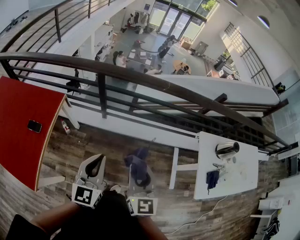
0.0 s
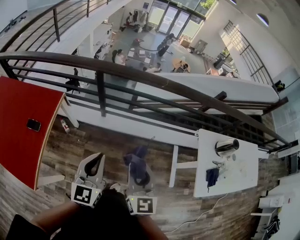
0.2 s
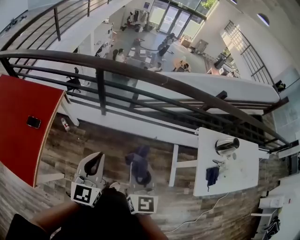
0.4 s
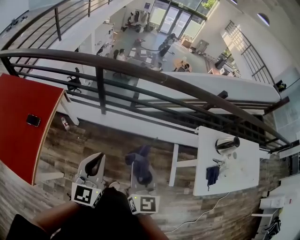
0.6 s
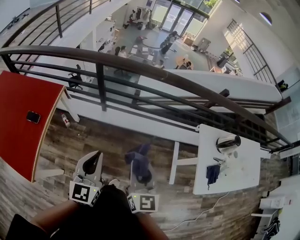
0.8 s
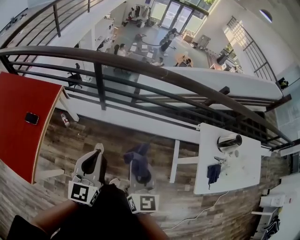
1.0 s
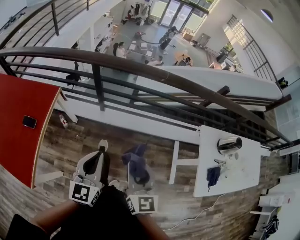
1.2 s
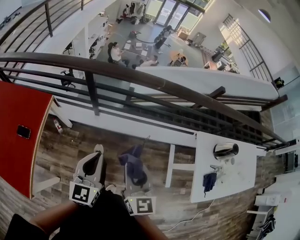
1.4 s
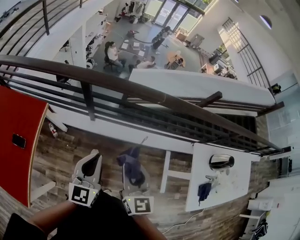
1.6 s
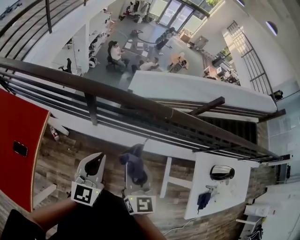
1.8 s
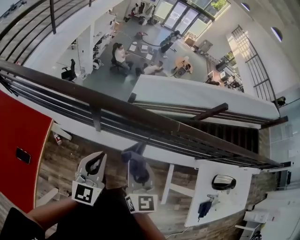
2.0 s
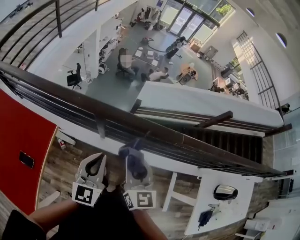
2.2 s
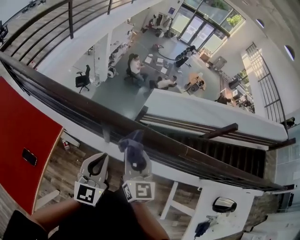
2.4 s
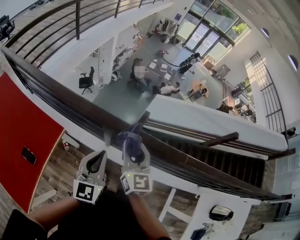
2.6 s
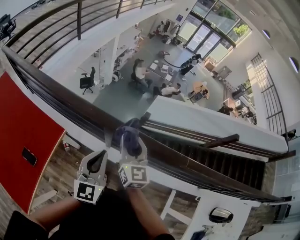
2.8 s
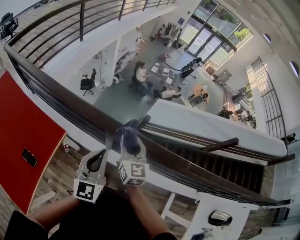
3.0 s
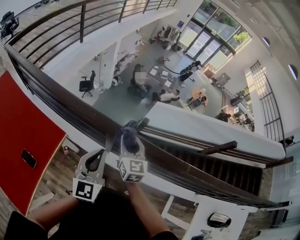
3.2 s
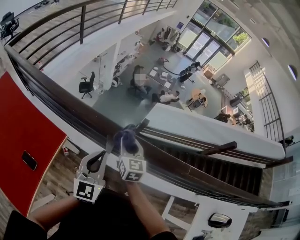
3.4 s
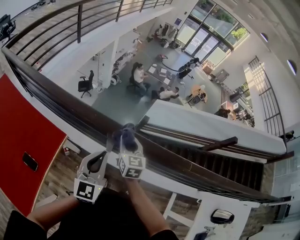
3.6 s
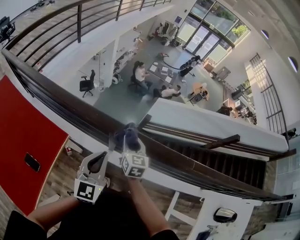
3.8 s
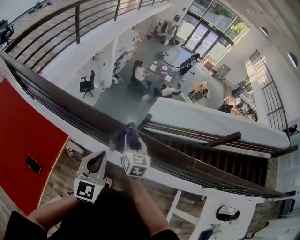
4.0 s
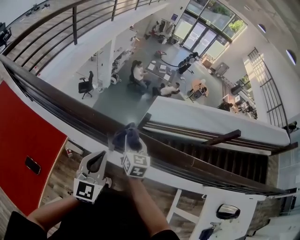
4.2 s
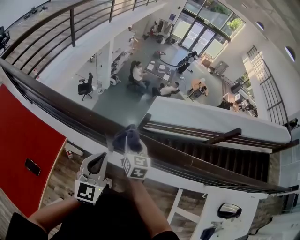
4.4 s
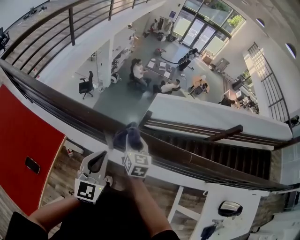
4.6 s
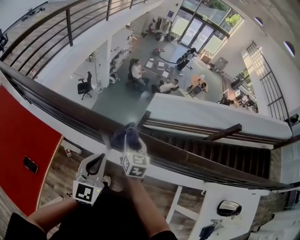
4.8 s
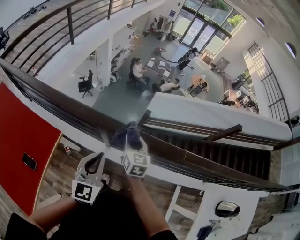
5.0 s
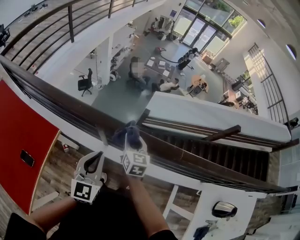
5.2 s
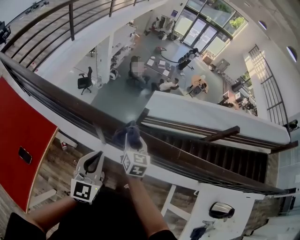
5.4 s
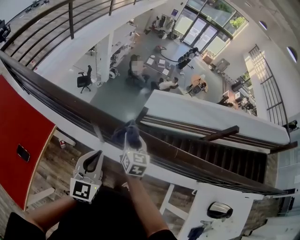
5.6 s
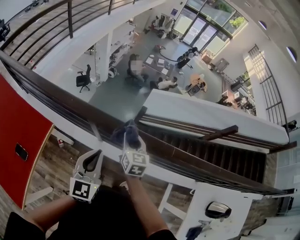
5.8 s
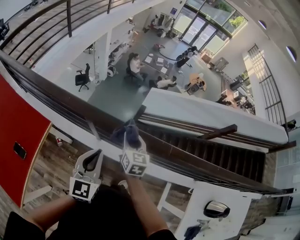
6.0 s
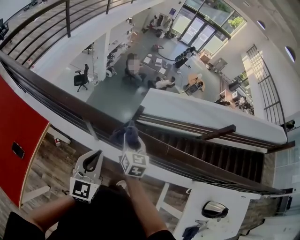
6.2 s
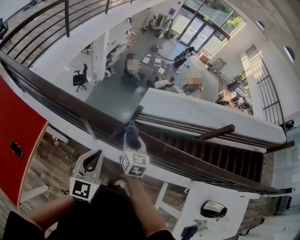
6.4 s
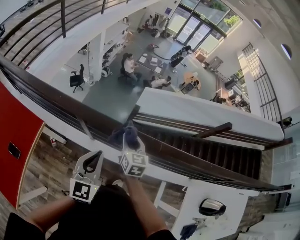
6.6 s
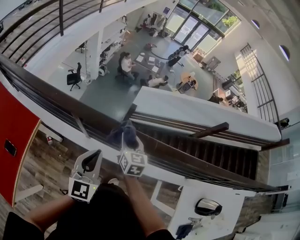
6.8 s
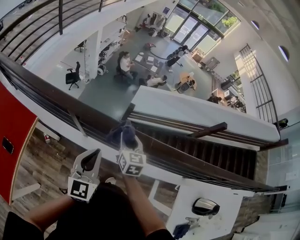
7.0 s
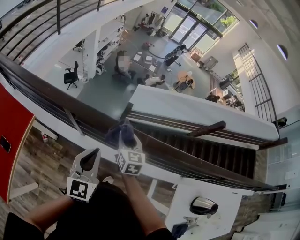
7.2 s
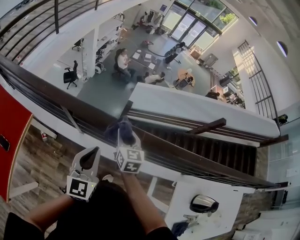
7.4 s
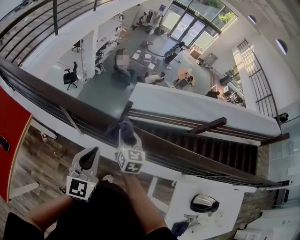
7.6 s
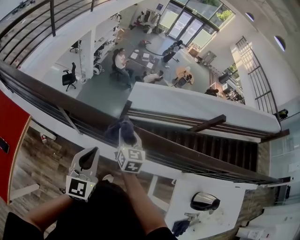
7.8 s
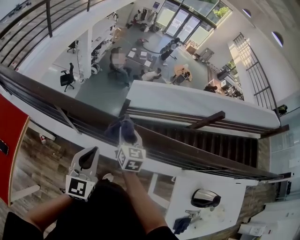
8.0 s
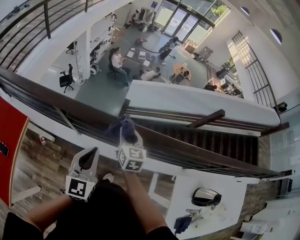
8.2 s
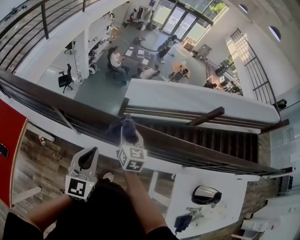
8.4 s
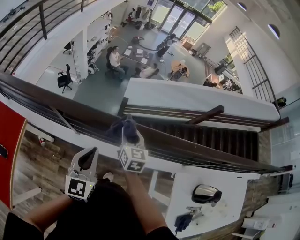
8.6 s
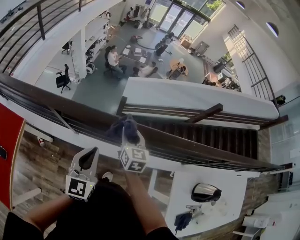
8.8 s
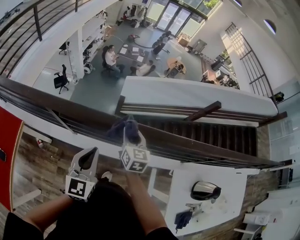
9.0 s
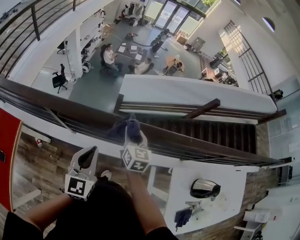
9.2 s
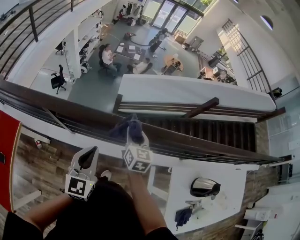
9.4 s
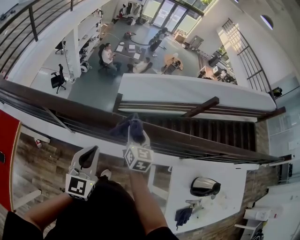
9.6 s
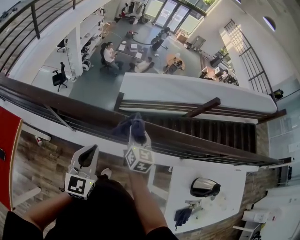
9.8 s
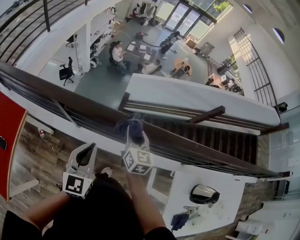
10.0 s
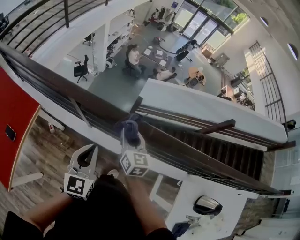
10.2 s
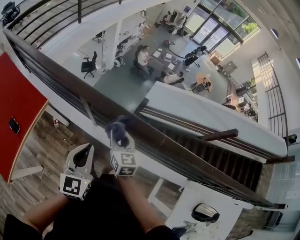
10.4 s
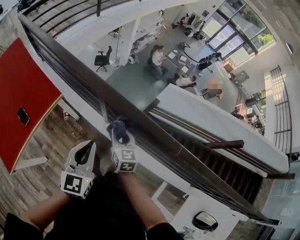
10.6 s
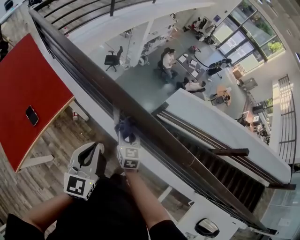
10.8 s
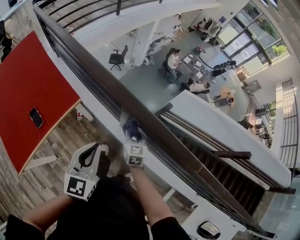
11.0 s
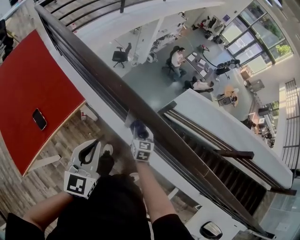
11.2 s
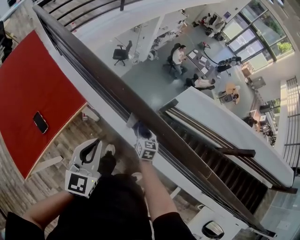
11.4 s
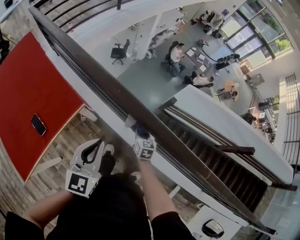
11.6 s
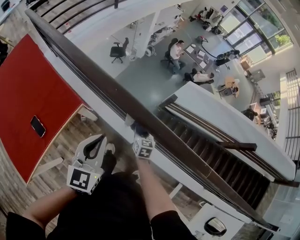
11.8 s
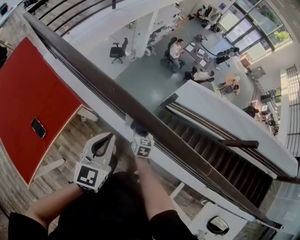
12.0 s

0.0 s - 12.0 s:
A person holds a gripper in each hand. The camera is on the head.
0.0 s - 1.6 s: The two grippers go approximately 10 cm forward.
1.6 s - 3.0 s: The right gripper goes roughly 35 cm forward and to the left; the left gripper shifts some 20 cm forward and to the left.
3.0 s - 4.4 s: The right gripper travels downward by roughly 10 cm.
4.4 s - 6.0 s: Both grippers travel together to the right, about 10 cm.
6.0 s - 7.6 s: Both grippers move to the right, some 10 cm.
7.6 s - 9.0 s: The right gripper is displaced to the right by about 10 cm.
9.0 s - 10.4 s: The left gripper is displaced to the left by about 10 cm. The right gripper travels to the left by roughly 20 cm, and swivels approximately 20 degrees.
10.4 s - 12.0 s: The left gripper goes approximately 15 cm to the left and forward. The right gripper goes some 25 cm downward, forward and to the left.

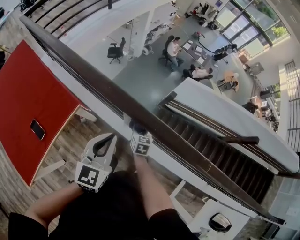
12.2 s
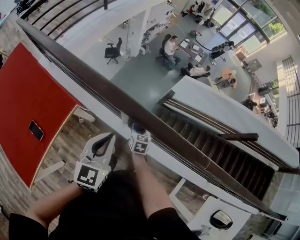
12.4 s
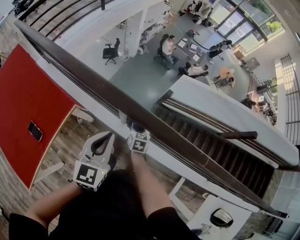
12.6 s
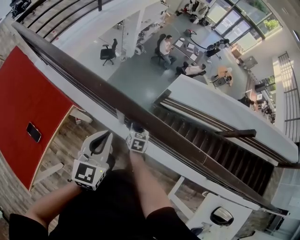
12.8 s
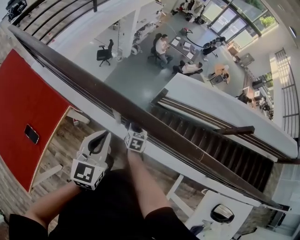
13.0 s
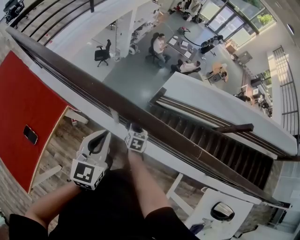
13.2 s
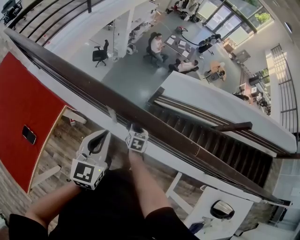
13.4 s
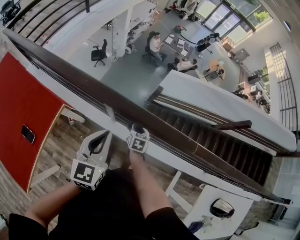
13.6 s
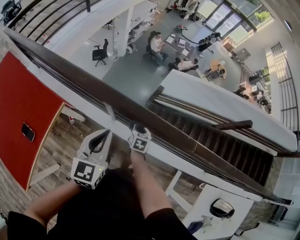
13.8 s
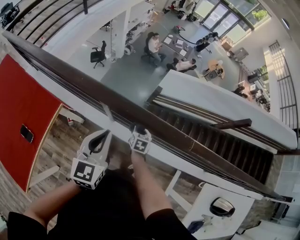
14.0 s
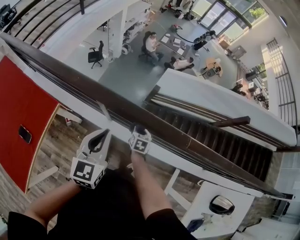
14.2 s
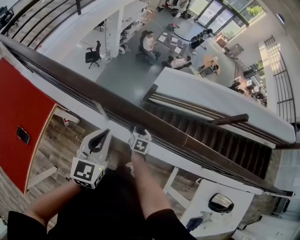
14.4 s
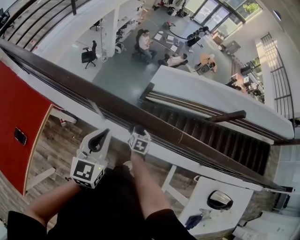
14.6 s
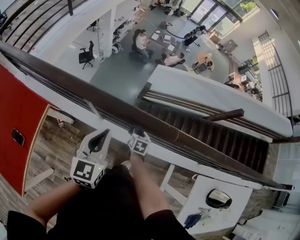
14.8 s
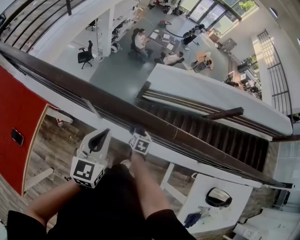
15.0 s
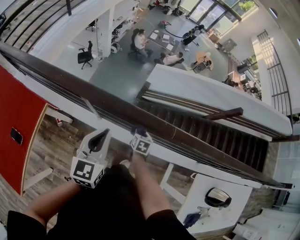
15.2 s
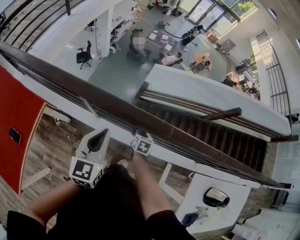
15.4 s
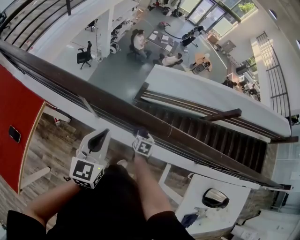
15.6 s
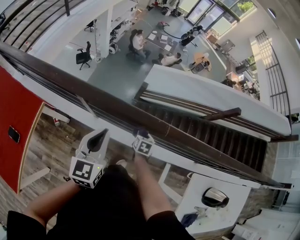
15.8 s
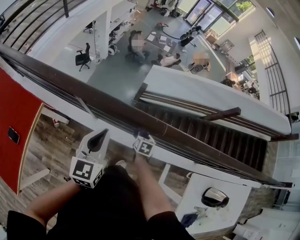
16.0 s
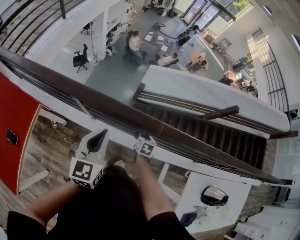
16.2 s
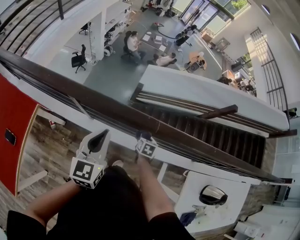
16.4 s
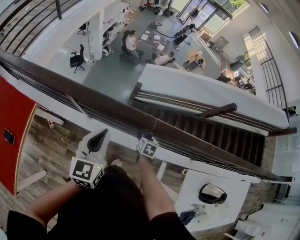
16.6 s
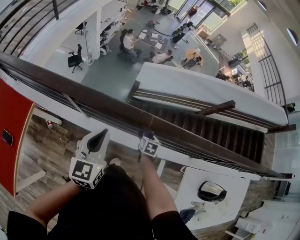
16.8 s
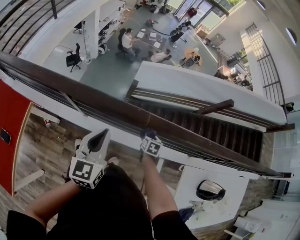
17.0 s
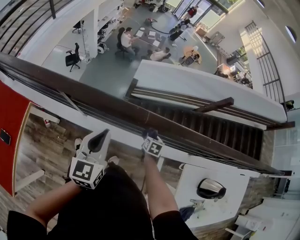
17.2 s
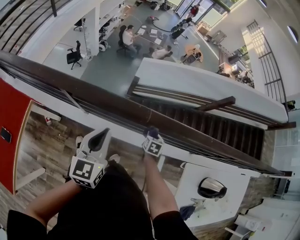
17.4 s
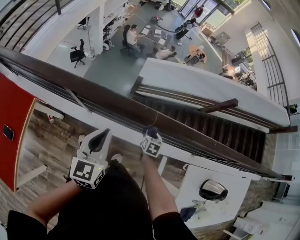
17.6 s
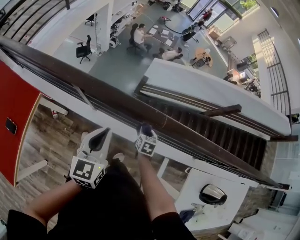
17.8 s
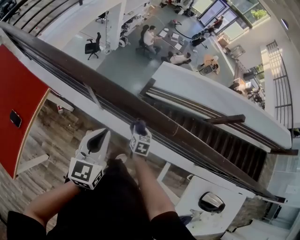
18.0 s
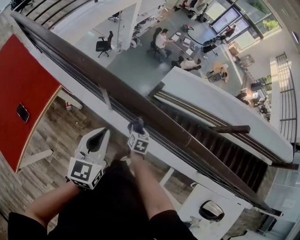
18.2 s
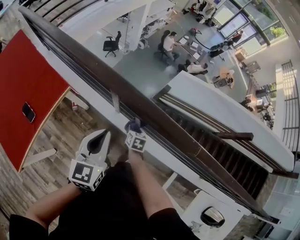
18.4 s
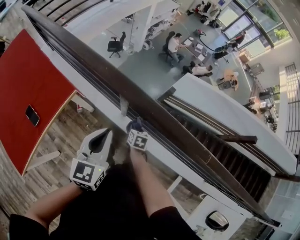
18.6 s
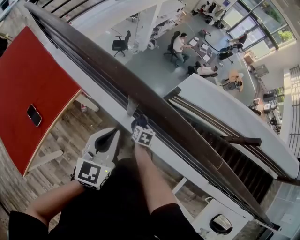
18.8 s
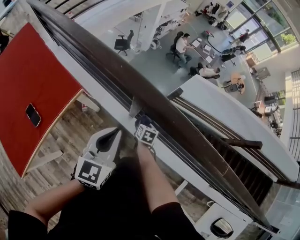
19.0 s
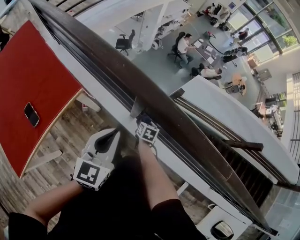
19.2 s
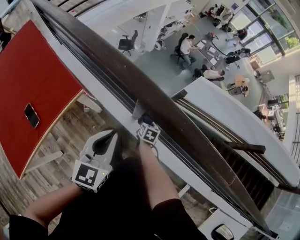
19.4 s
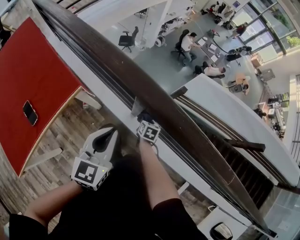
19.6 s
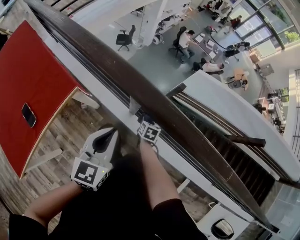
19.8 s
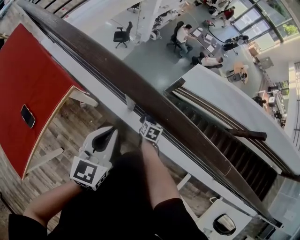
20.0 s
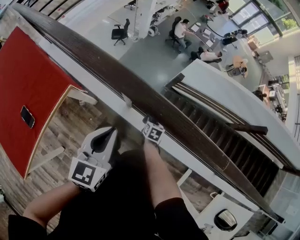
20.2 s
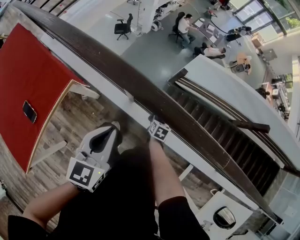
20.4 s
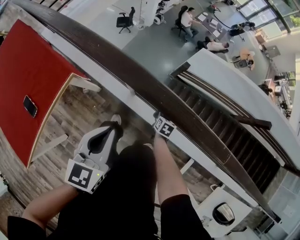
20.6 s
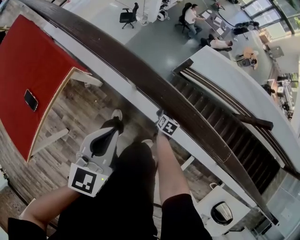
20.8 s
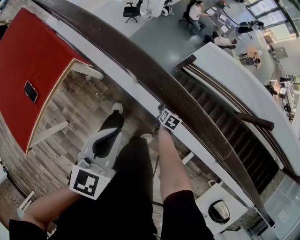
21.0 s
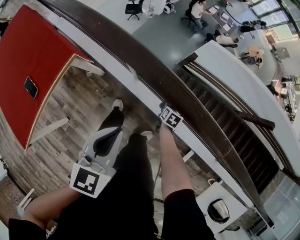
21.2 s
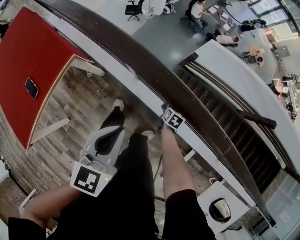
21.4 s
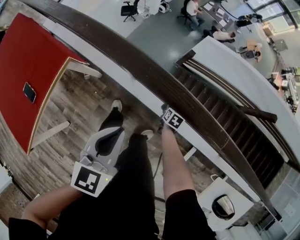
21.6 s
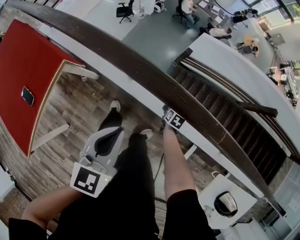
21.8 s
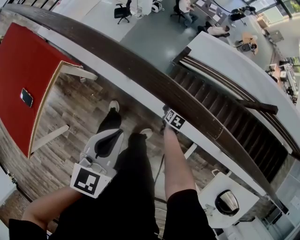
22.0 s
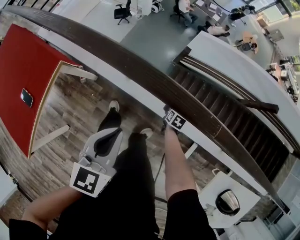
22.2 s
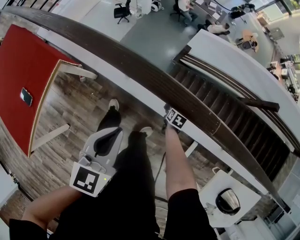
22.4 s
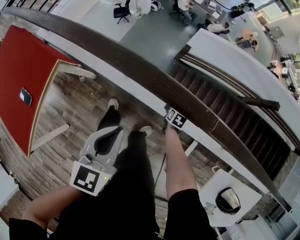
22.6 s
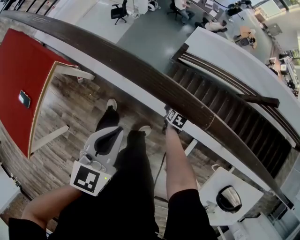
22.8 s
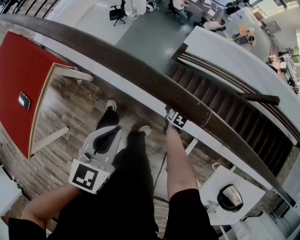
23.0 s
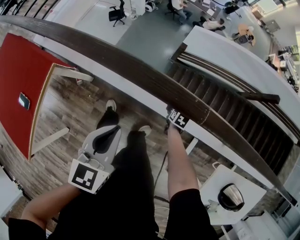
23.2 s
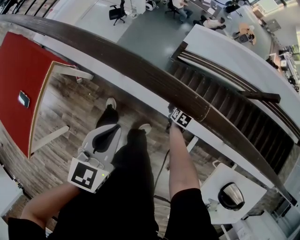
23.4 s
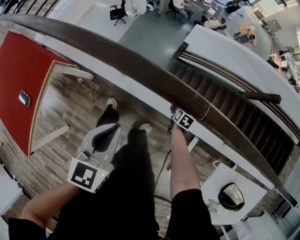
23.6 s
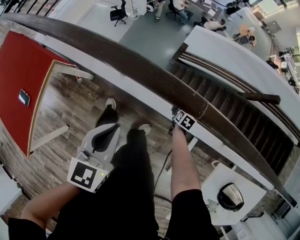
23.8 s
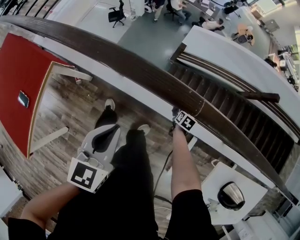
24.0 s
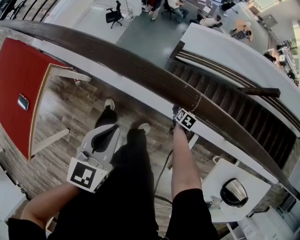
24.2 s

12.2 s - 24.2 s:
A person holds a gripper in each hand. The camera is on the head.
12.2 s - 13.8 s: The right gripper travels to the right by some 10 cm; the left gripper moves to the right, approximately 5 cm.
13.8 s - 15.2 s: The left gripper shifts approximately 10 cm to the right. Meanwhile the right gripper travels to the right by some 15 cm.
15.2 s - 16.6 s: The left gripper shifts some 5 cm to the right. Meanwhile the right gripper is displaced to the right by roughly 10 cm.
16.6 s - 18.2 s: The left gripper ends up about 10 cm from where it was. The right gripper changes place by some 20 cm, and changes its angle by approximately 20 degrees.
18.2 s - 19.8 s: The left gripper heads to the left, downward and forward, covering approximately 15 cm. Meanwhile the right gripper shifts approximately 20 cm downward, forward and to the left.
19.8 s - 21.2 s: The right gripper shifts about 15 cm to the right and backward; the left gripper shifts roughly 10 cm backward, to the right and upward.
21.2 s - 22.6 s: The right gripper is displaced to the right by some 10 cm. Meanwhile the left gripper shifts about 5 cm to the right.
22.6 s - 24.2 s: The right gripper goes approximately 10 cm to the right.
